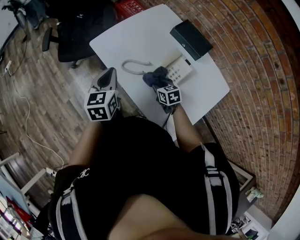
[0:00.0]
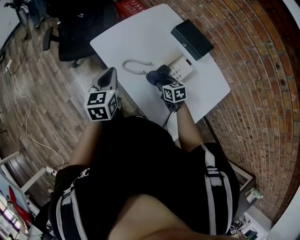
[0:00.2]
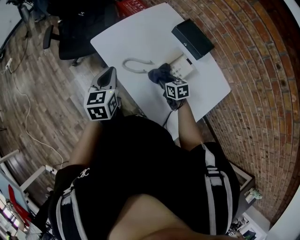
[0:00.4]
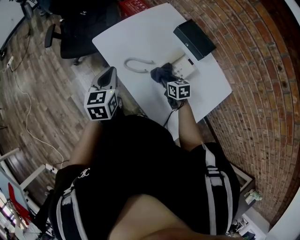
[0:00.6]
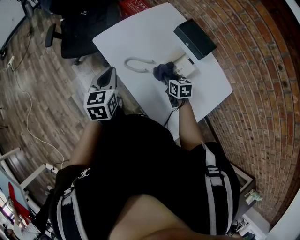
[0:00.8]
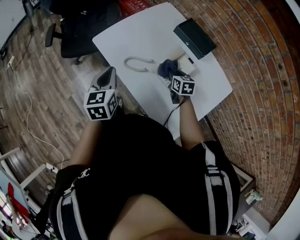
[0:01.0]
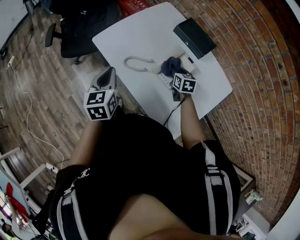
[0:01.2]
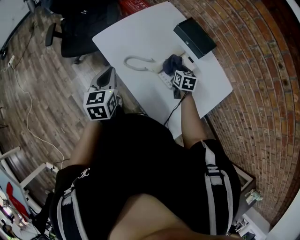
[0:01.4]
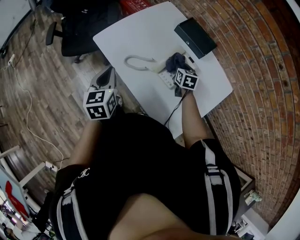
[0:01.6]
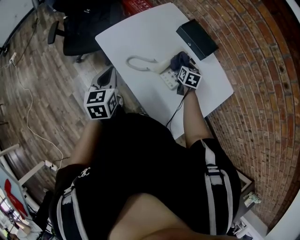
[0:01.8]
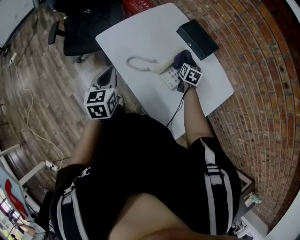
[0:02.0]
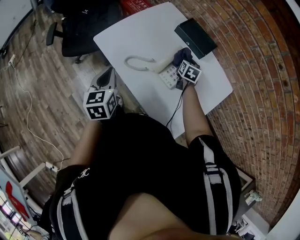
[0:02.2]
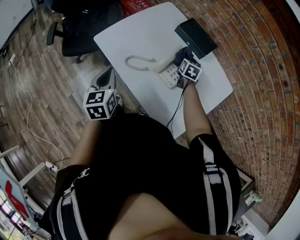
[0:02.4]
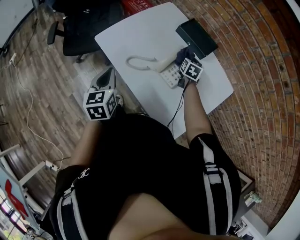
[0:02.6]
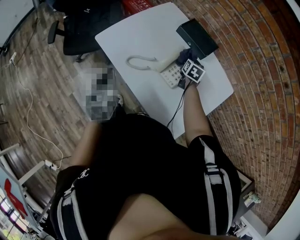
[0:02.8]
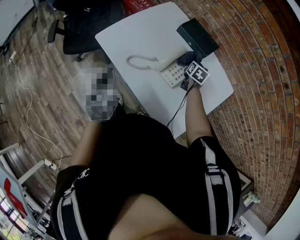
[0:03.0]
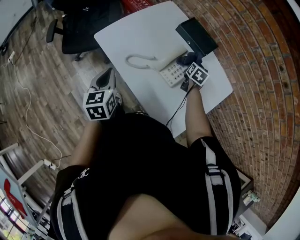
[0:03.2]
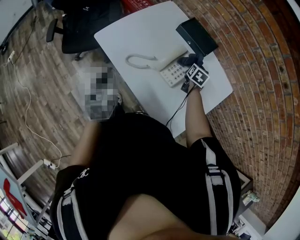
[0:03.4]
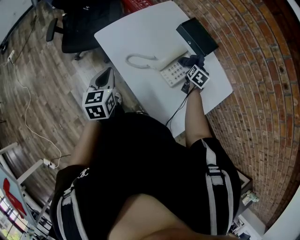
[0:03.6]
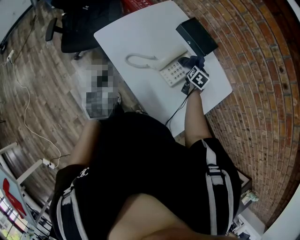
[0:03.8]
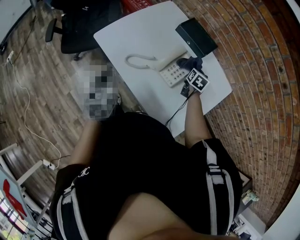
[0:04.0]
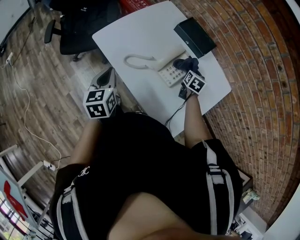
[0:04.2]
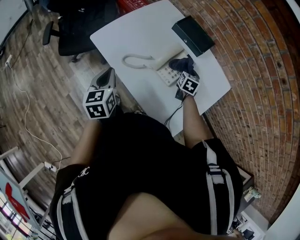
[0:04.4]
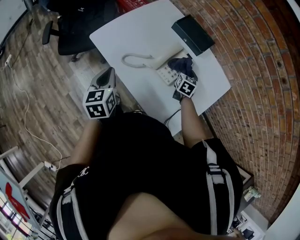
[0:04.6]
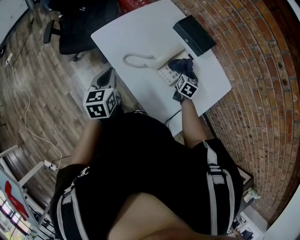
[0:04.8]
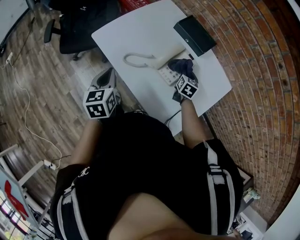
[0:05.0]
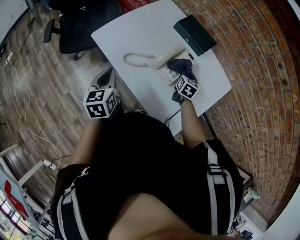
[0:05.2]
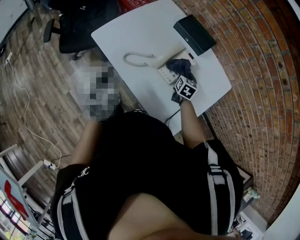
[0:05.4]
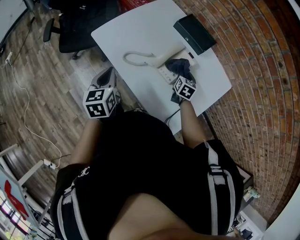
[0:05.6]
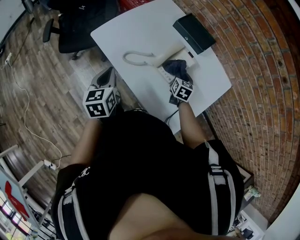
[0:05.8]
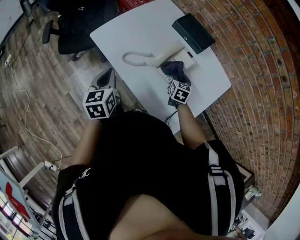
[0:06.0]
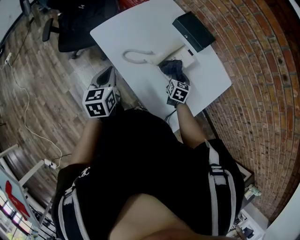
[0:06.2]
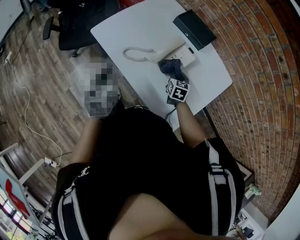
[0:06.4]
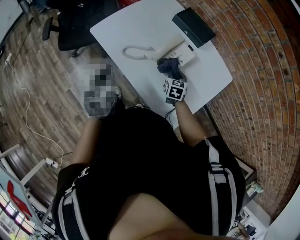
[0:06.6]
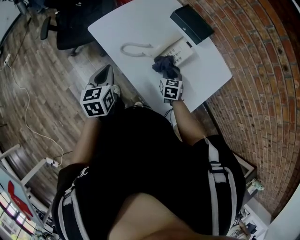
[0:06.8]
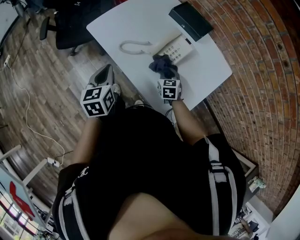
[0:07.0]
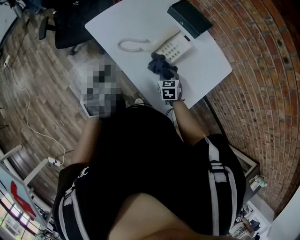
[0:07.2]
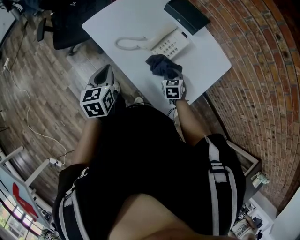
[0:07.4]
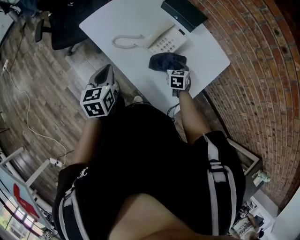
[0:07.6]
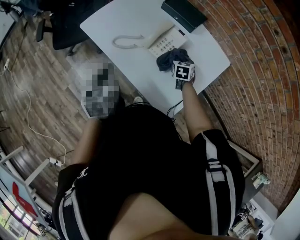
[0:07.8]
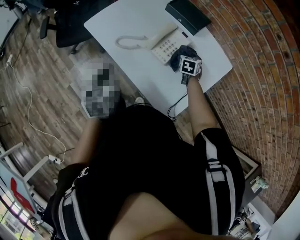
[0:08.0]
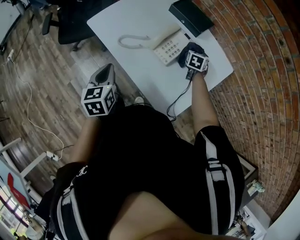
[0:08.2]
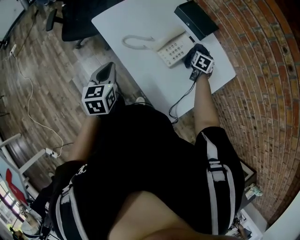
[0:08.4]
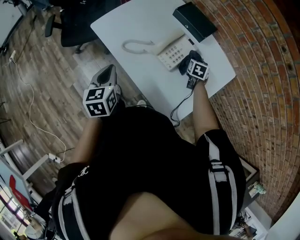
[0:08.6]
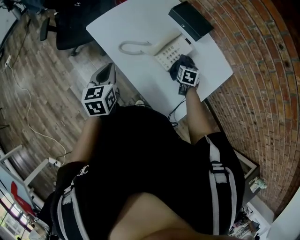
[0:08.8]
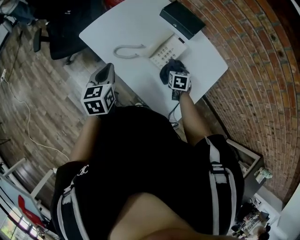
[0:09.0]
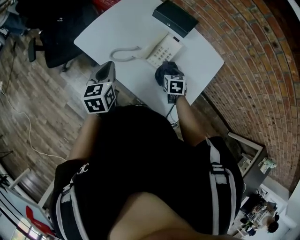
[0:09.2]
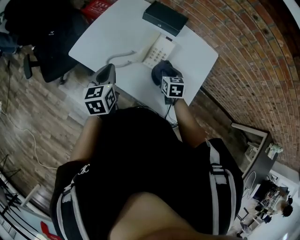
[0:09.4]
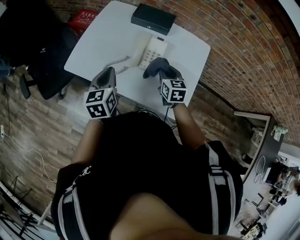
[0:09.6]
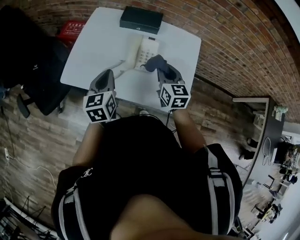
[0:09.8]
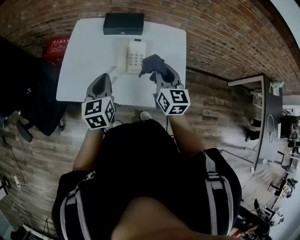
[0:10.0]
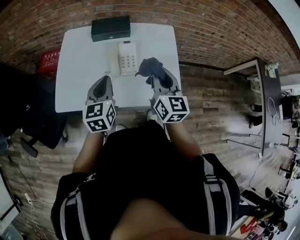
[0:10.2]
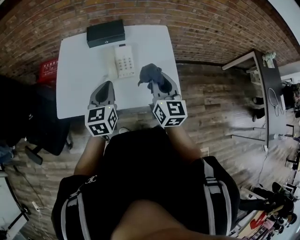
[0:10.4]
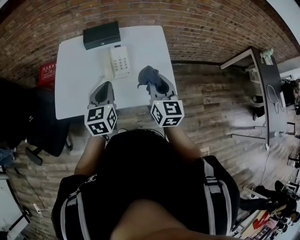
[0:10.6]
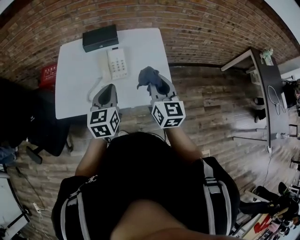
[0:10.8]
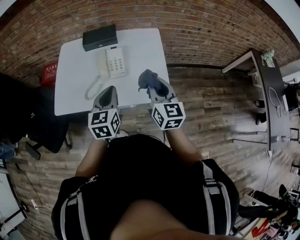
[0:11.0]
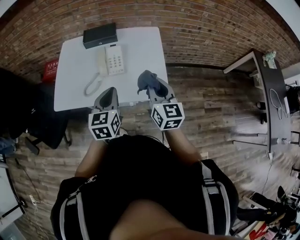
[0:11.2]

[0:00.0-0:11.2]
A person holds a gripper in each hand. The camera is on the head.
0:00.0 to 0:01.6: The right gripper moves to the right and forward, some 15 cm, and changes its angle by some 30 degrees.
0:01.6 to 0:03.2: The right gripper goes some 10 cm to the right, and changes its angle by about 20 degrees.
0:03.2 to 0:04.8: The right gripper moves backward, roughly 5 cm.
0:04.8 to 0:06.4: The right gripper is displaced backward and to the left by about 10 cm.
0:06.4 to 0:08.0: The left gripper shifts roughly 5 cm to the right. Meanwhile the right gripper moves to the right, approximately 10 cm.
0:08.0 to 0:09.6: The right gripper is displaced upward, to the left and backward by some 20 cm, and changes its angle by roughly 20 degrees. The left gripper travels forward by approximately 10 cm, and changes its angle by about 30 degrees.
0:09.6 to 0:11.2: The left gripper changes place by approximately 20 cm, and swivels approximately 30 degrees; the right gripper moves some 25 cm, and changes its angle by approximately 30 degrees.

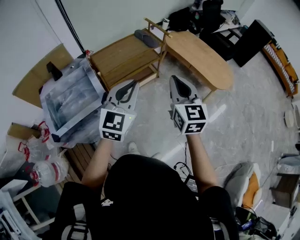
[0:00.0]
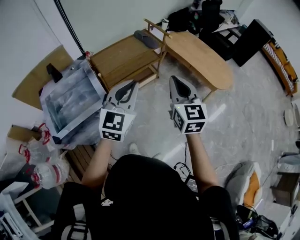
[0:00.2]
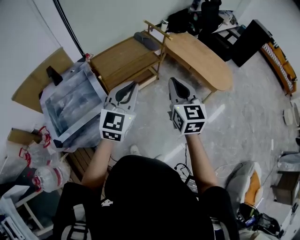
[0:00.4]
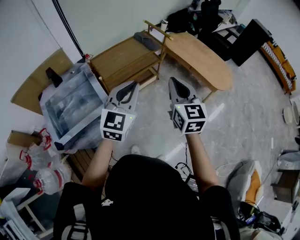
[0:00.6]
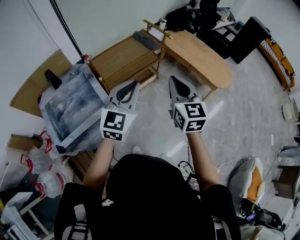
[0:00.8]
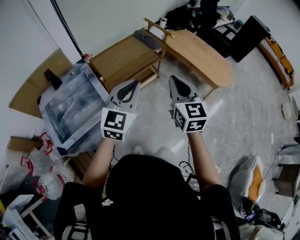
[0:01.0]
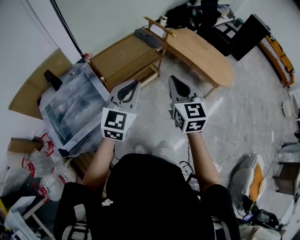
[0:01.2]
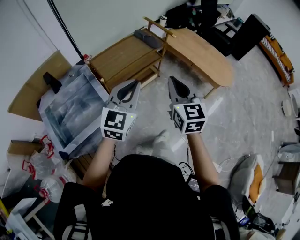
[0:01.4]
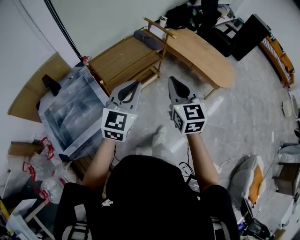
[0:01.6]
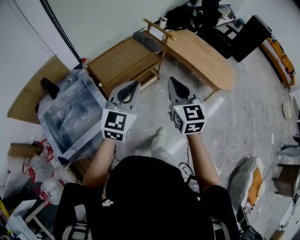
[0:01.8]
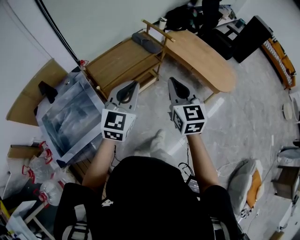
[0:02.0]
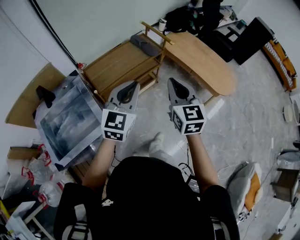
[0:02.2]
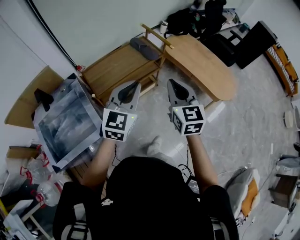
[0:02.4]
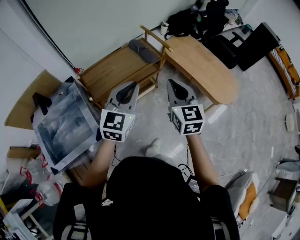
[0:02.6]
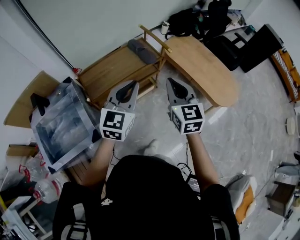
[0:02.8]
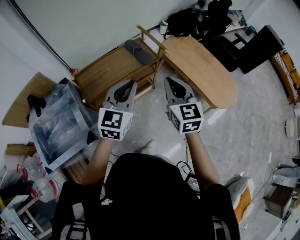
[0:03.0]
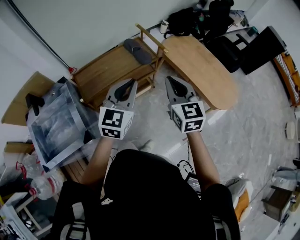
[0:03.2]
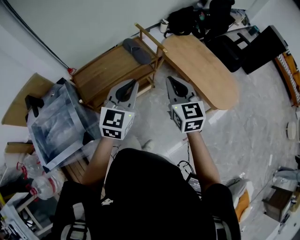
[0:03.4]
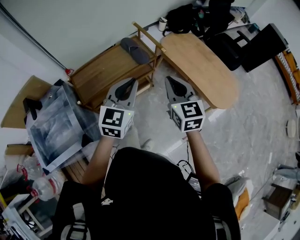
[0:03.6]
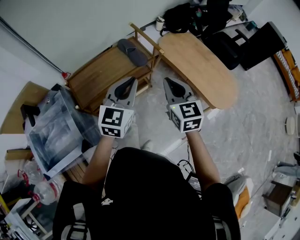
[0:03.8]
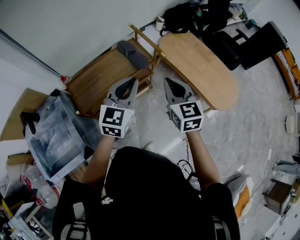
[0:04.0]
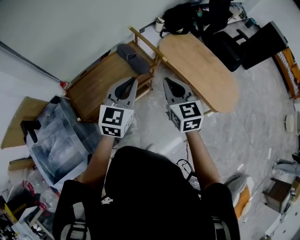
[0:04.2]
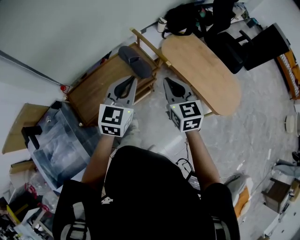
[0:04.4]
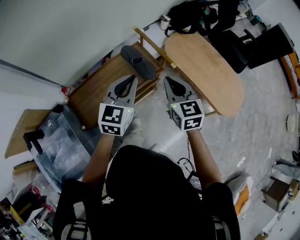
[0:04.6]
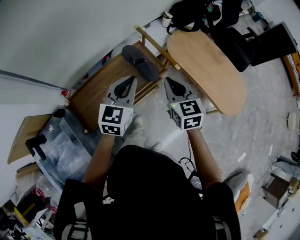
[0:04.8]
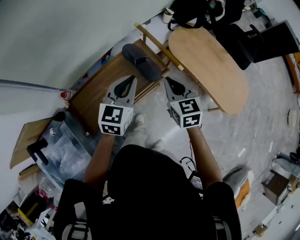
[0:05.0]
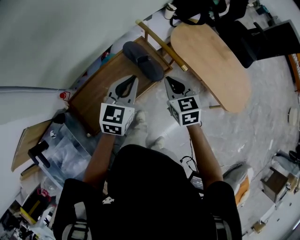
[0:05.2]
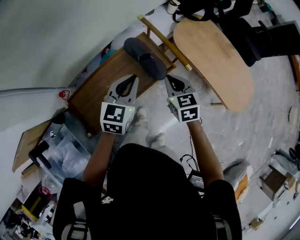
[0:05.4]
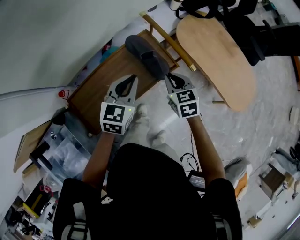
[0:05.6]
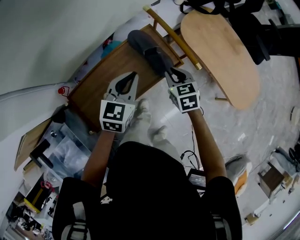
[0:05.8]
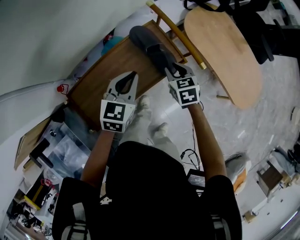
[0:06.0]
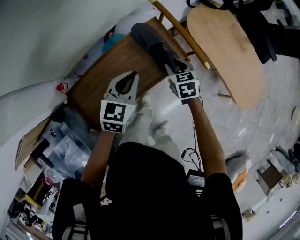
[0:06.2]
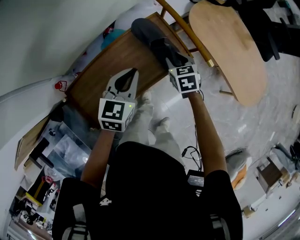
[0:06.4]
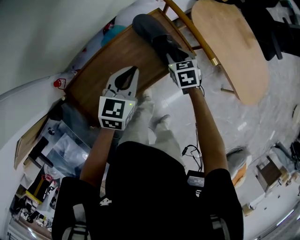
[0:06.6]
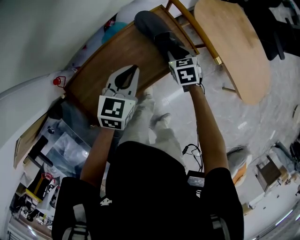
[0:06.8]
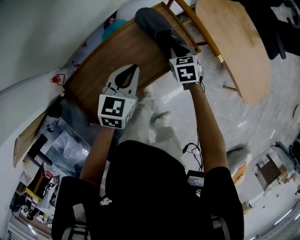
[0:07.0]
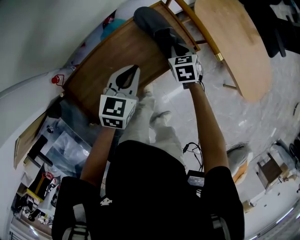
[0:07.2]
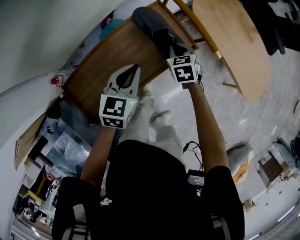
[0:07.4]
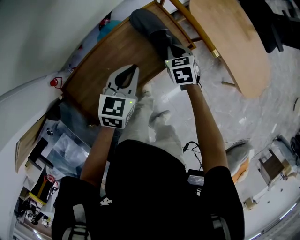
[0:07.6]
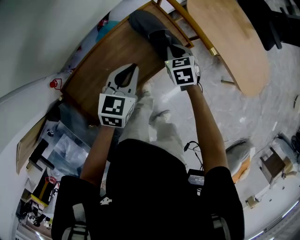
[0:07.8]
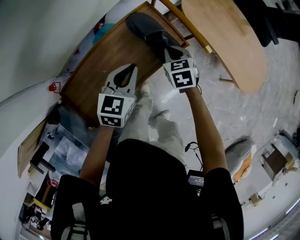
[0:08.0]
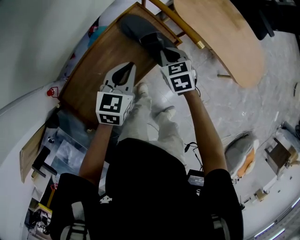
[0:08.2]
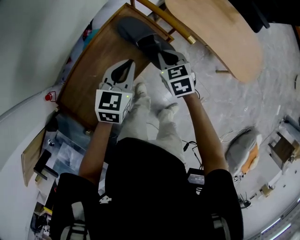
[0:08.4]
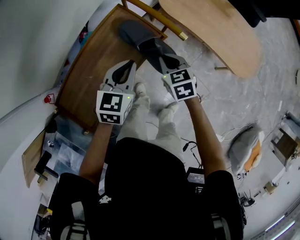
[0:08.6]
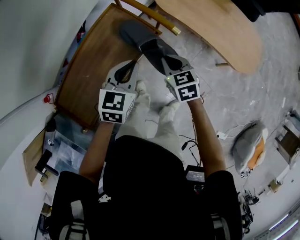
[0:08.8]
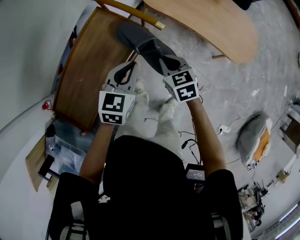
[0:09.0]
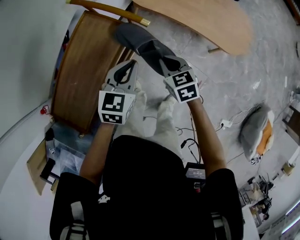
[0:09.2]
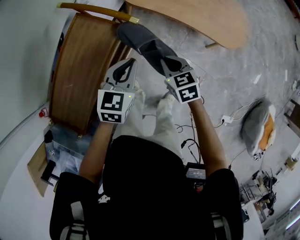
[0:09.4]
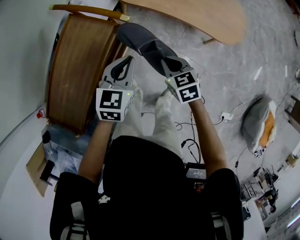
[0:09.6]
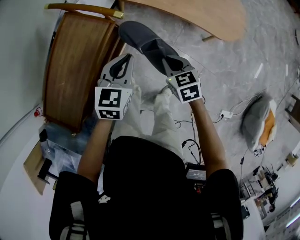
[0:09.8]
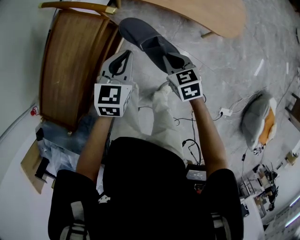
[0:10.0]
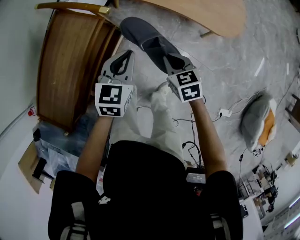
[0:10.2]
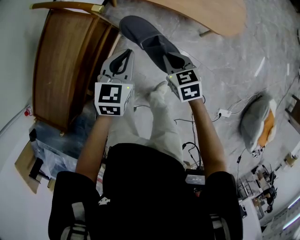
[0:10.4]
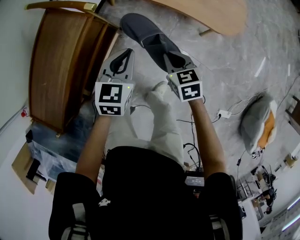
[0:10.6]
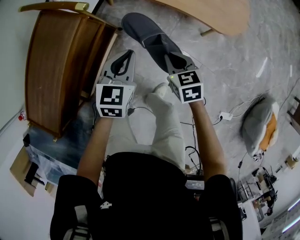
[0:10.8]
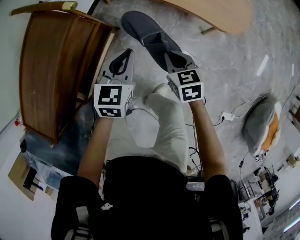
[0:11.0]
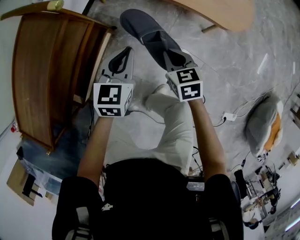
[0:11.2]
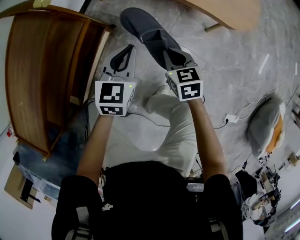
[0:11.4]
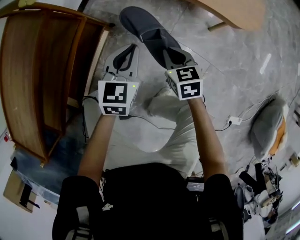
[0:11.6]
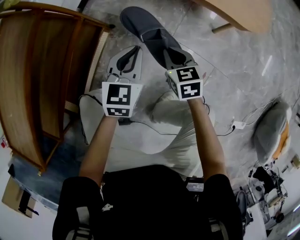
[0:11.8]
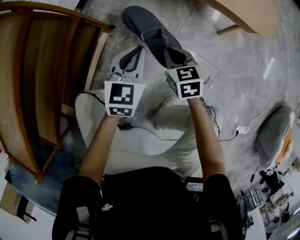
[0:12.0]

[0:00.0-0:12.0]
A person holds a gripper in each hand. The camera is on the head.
0:00.0 to 0:01.6: The right gripper heads to the left and forward, covering approximately 10 cm. The left gripper shifts roughly 10 cm forward and to the left.
0:01.6 to 0:03.0: Both grippers move forward and to the right, some 25 cm.
0:03.0 to 0:04.4: Both grippers travel together forward, roughly 20 cm.
0:04.4 to 0:06.0: The left gripper goes roughly 25 cm downward, forward and to the left, and rotates about 20 degrees, while the right gripper shifts approximately 30 cm downward and forward, rotates some 30 degrees, and opens its fingers.
0:06.0 to 0:07.6: Both grippers travel together downward, some 5 cm. The right gripper closes.
0:07.6 to 0:09.0: The left gripper moves to the right, some 20 cm. Meanwhile the right gripper travels to the right, backward and upward by some 20 cm.
0:09.0 to 0:10.4: The right gripper moves to the right and backward, roughly 20 cm; the left gripper shifts some 15 cm to the right.
0:10.4 to 0:12.0: Both grippers move downward, roughly 35 cm.
